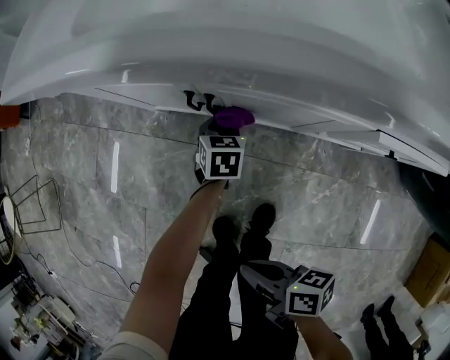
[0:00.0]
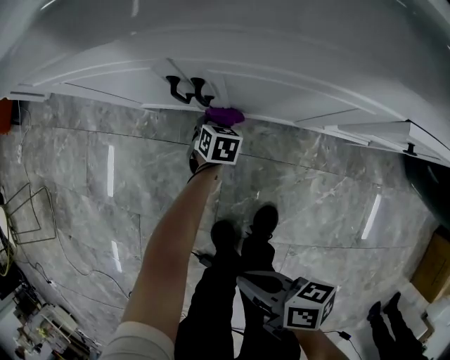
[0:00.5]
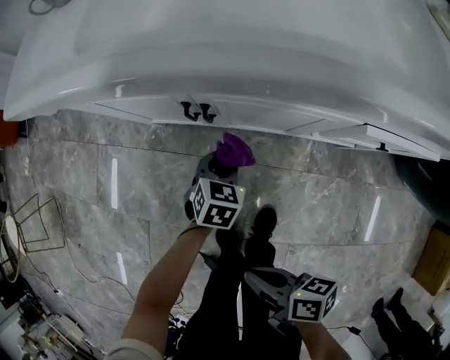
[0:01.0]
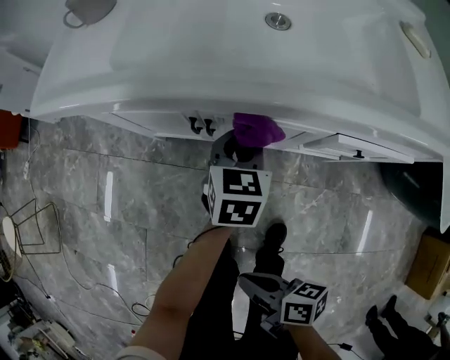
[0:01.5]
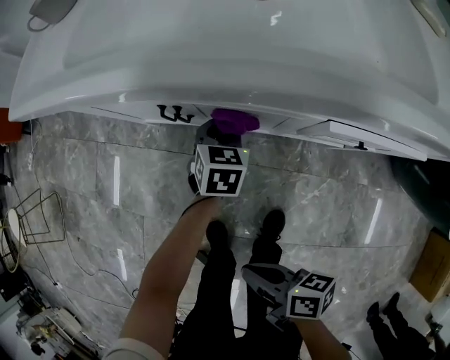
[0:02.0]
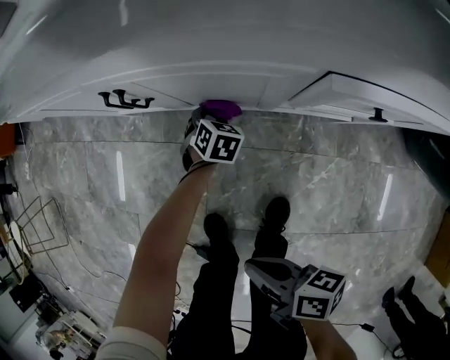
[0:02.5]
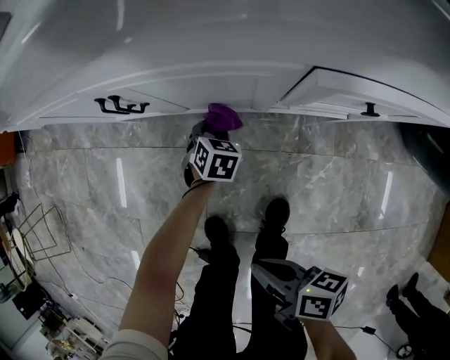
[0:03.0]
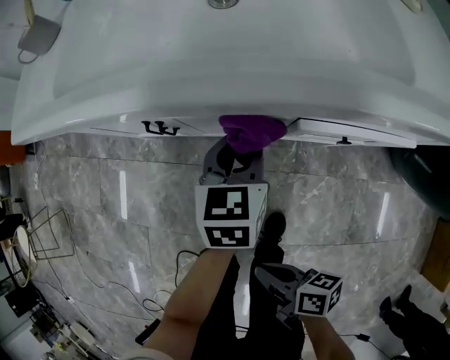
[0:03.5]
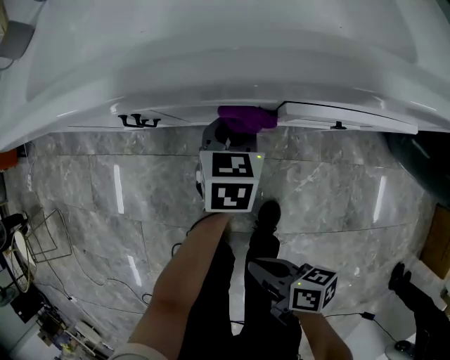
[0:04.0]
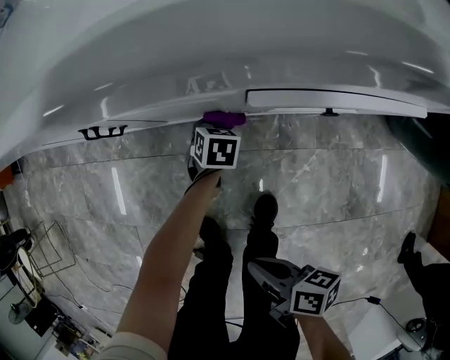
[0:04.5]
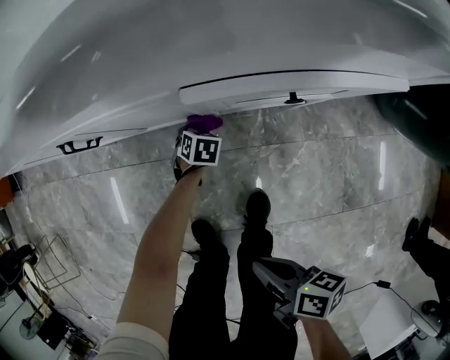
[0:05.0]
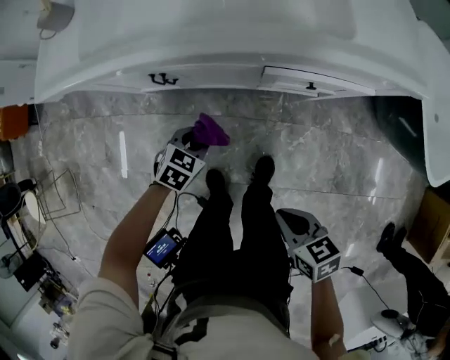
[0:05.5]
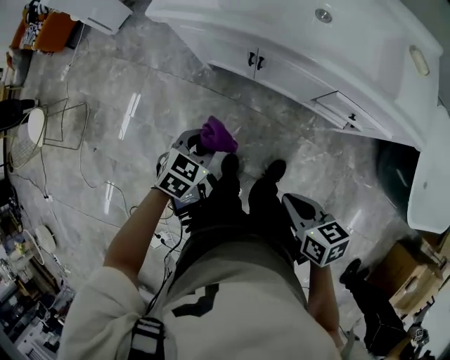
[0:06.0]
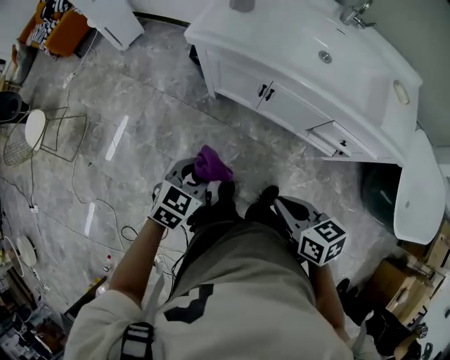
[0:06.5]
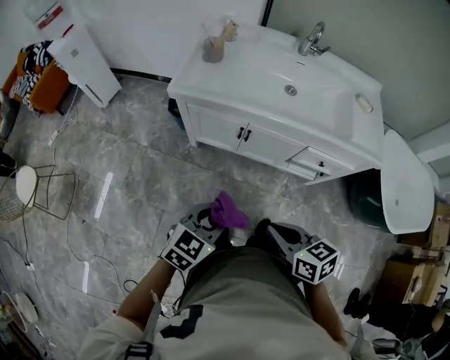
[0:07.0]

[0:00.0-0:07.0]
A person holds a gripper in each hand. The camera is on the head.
0:00.0 to 0:02.0: The left gripper goes up and down, roughly 35 cm each way, reversing 2 times.
0:02.0 to 0:03.5: The left gripper travels upward by about 10 cm.
0:03.5 to 0:05.0: The left gripper travels downward by about 35 cm, and points its fingers roughly 40 degrees further downward.
0:05.0 to 0:07.0: The left gripper heads upward, covering roughly 70 cm, and tilts its fingers some 40 degrees upward.

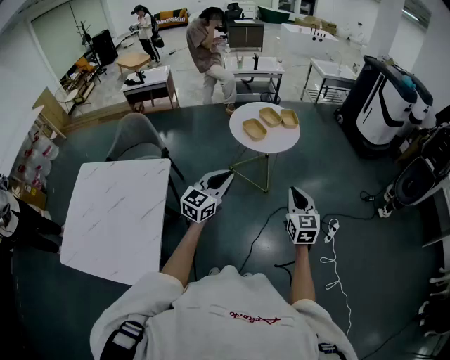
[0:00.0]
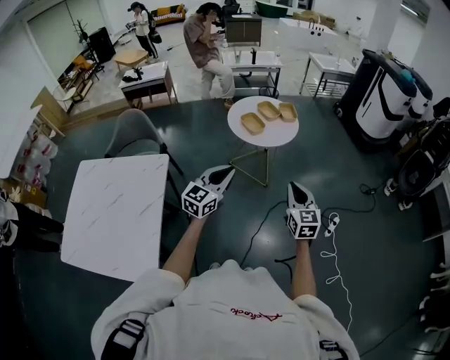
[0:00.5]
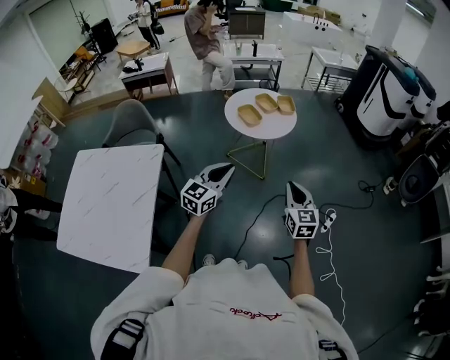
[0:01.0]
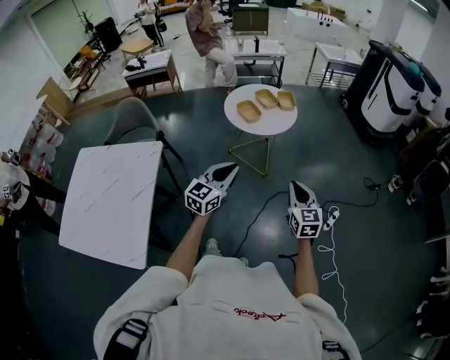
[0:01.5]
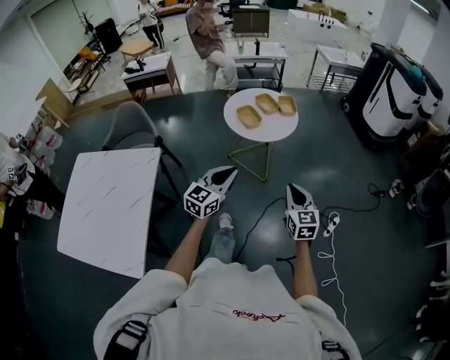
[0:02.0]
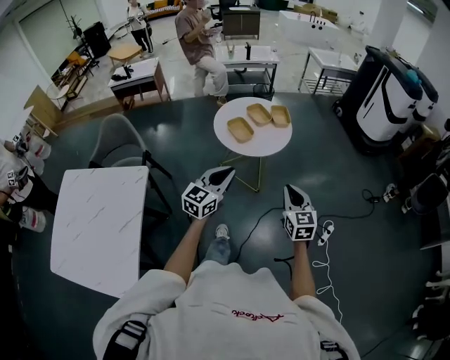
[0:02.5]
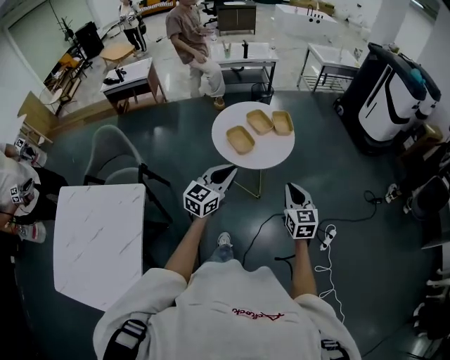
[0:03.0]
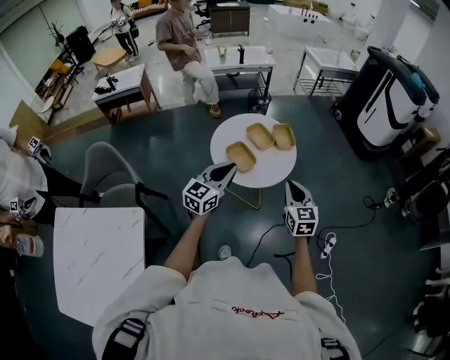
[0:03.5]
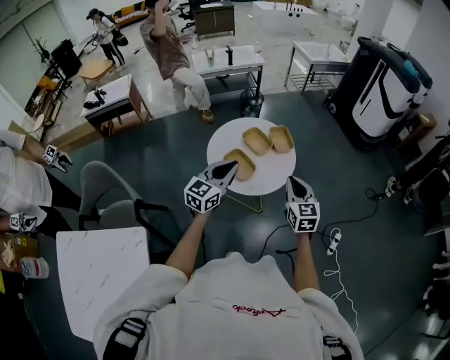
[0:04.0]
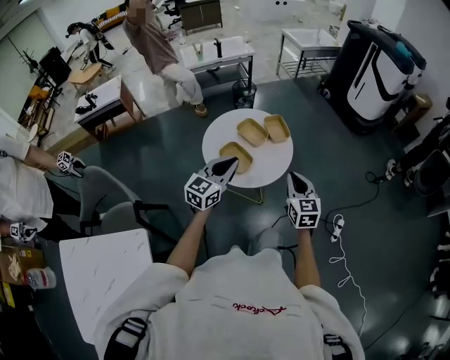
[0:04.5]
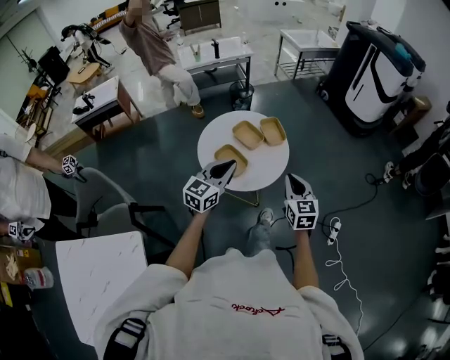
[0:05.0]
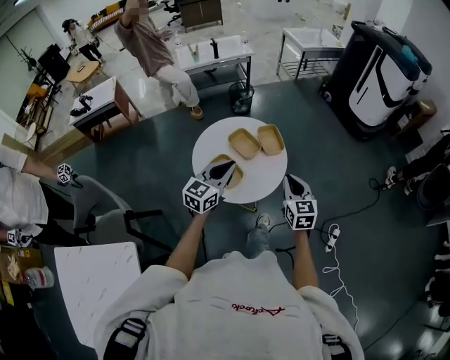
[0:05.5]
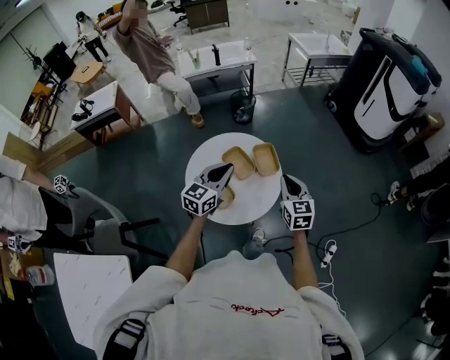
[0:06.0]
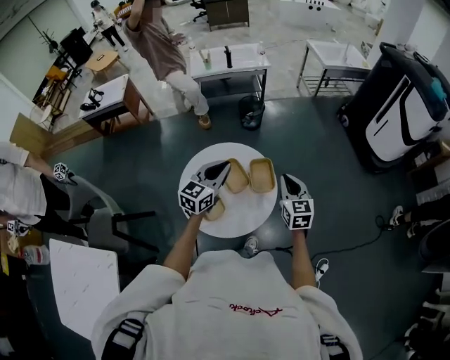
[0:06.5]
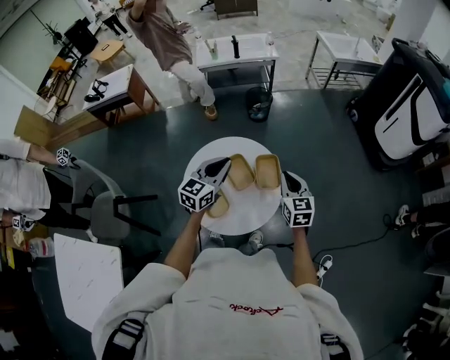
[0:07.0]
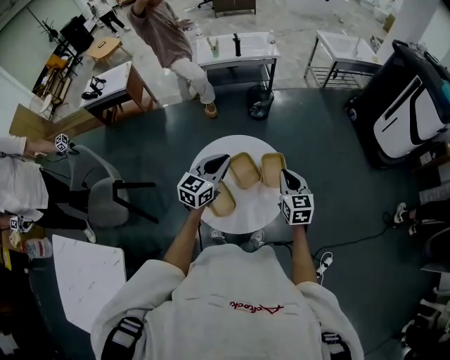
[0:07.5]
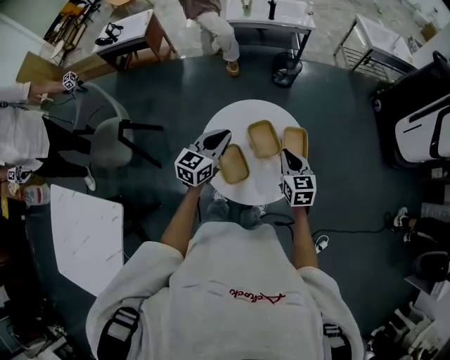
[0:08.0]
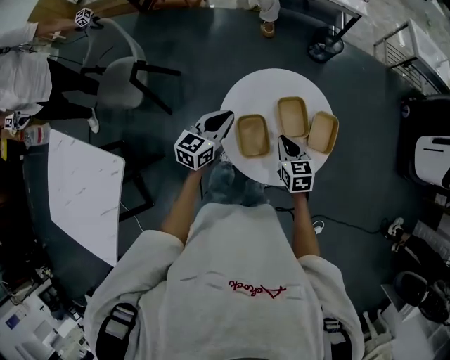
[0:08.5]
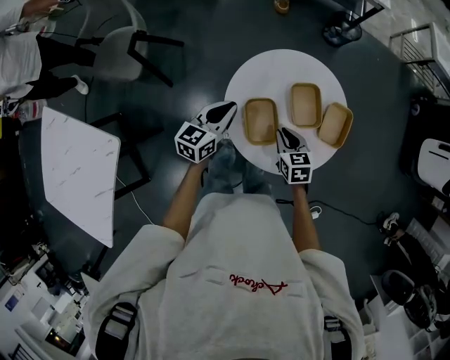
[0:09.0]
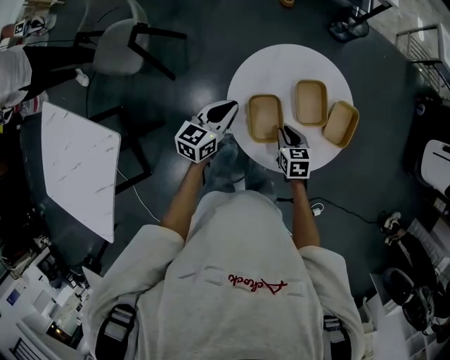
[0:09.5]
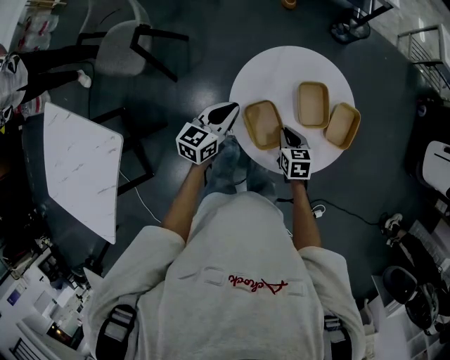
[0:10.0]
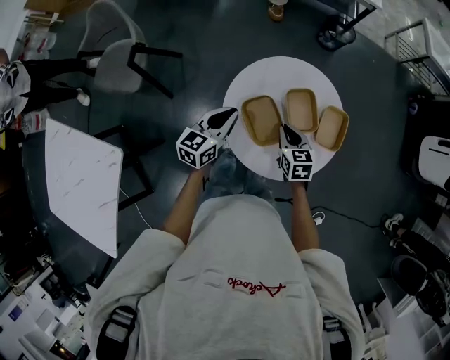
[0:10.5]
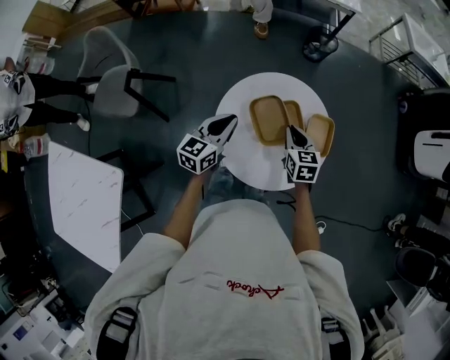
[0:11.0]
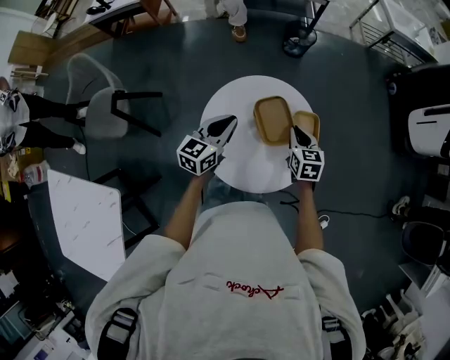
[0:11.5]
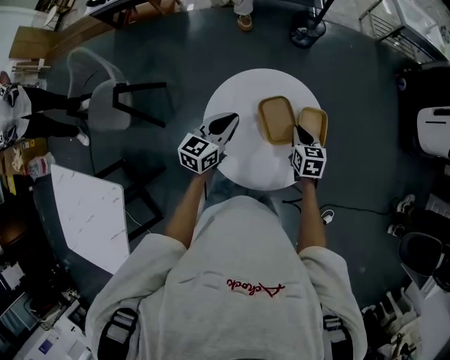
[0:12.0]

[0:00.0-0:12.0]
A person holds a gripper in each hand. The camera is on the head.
0:00.0 to 0:02.0: The left gripper travels to the right by about 10 cm; the right gripper shifts approximately 10 cm to the right and downward.
0:02.0 to 0:04.0: The two grippers go approximately 35 cm forward.
0:04.0 to 0:06.0: Both grippers move forward, roughly 20 cm.
0:06.0 to 0:08.0: The two grippers go roughly 15 cm to the left, forward and downward. The right gripper turns by roughly 20 degrees.
0:08.0 to 0:10.0: Both grippers move downward and to the left, some 20 cm. The left gripper swivels about 20 degrees, while the right gripper turns by some 30 degrees.
0:10.0 to 0:12.0: The left gripper goes some 15 cm to the right and forward. Meanwhile the right gripper travels to the right, forward and upward by roughly 20 cm, and changes its angle by about 20 degrees.

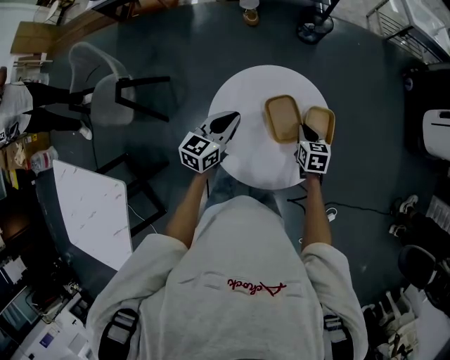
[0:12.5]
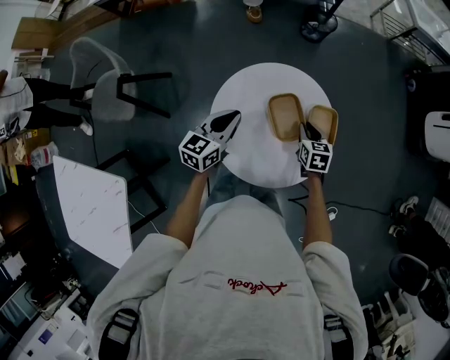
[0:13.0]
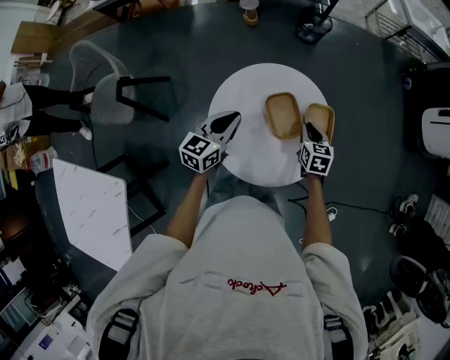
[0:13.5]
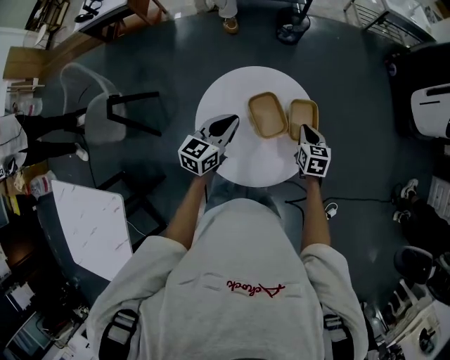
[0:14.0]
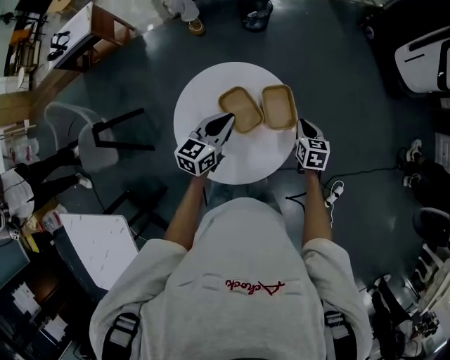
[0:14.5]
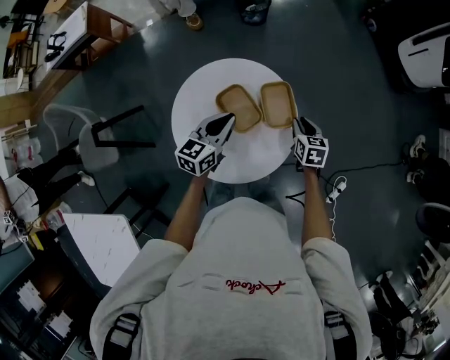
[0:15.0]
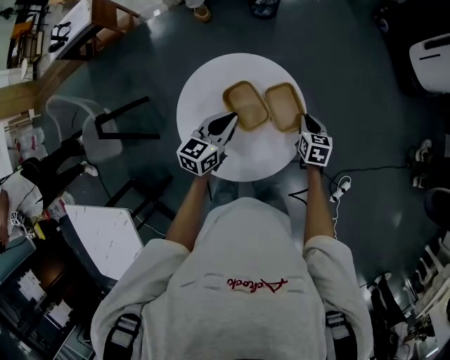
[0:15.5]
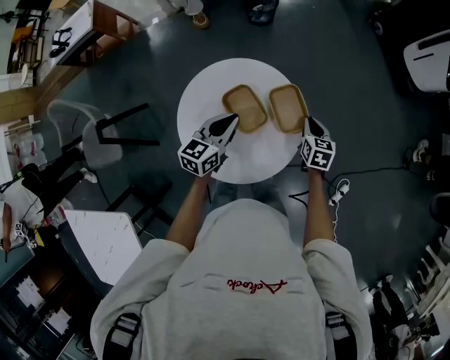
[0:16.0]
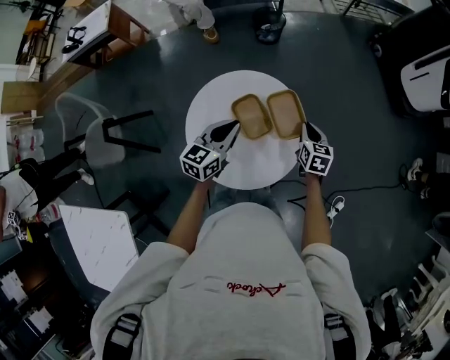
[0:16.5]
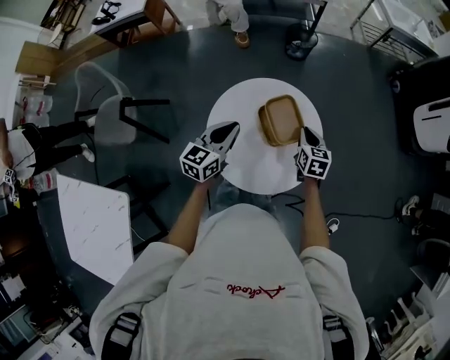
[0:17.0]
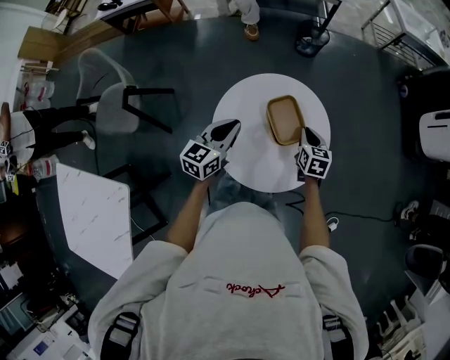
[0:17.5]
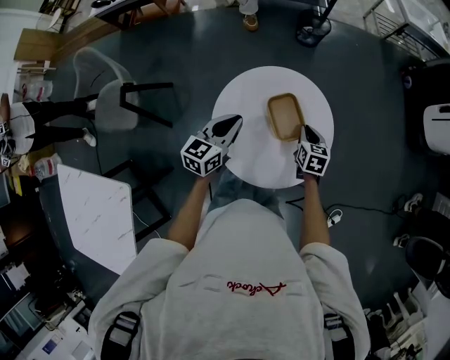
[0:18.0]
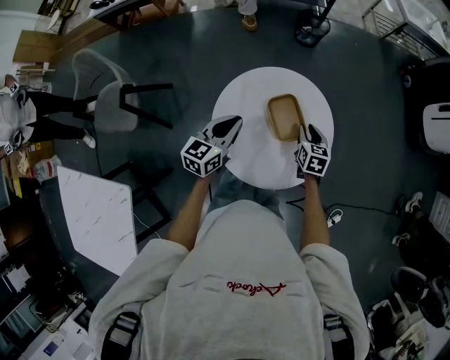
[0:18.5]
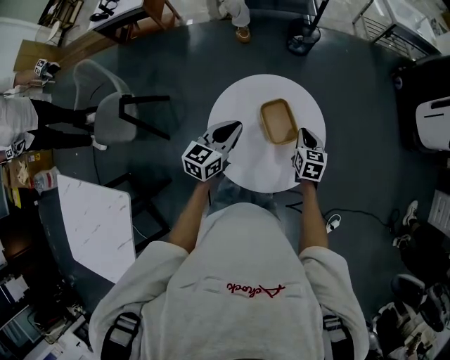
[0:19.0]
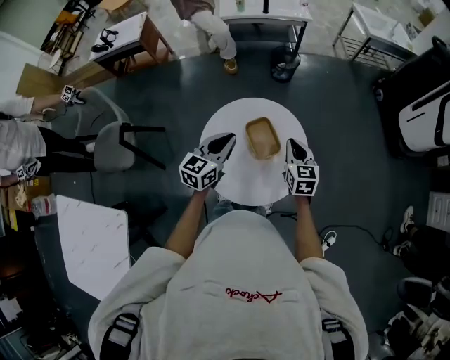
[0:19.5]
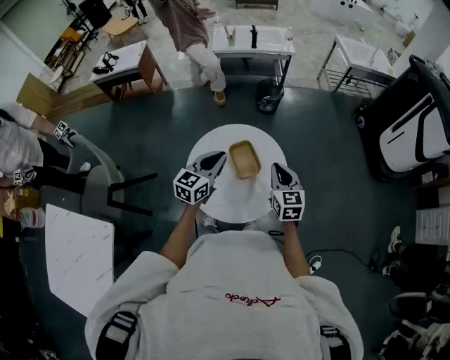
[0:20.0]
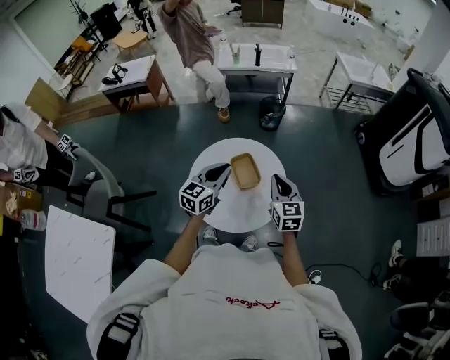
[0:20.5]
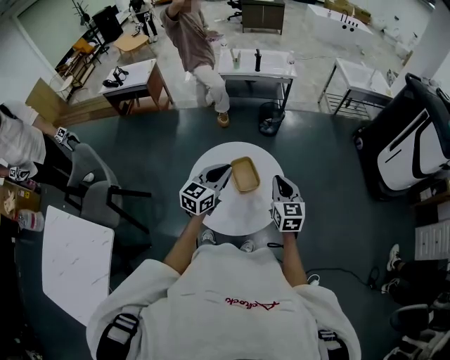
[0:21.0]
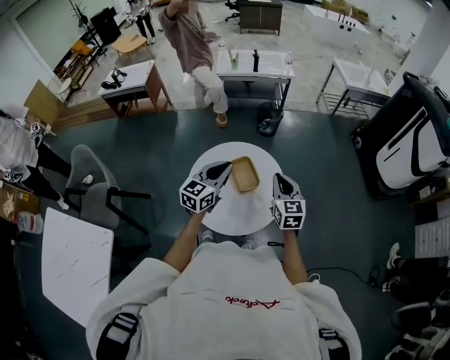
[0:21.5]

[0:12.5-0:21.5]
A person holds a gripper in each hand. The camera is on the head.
0:12.5 to 0:14.5: Both grippers move to the right, about 15 cm.
0:14.5 to 0:17.0: The right gripper heads to the left, covering roughly 10 cm, while the left gripper moves to the left and backward, some 10 cm.
0:17.0 to 0:19.5: The right gripper heads upward, covering approximately 10 cm, and opens, then closes again.
0:19.5 to 0:21.5: The right gripper shifts some 10 cm upward and backward. Meanwhile the left gripper travels upward and to the right by roughly 10 cm.
